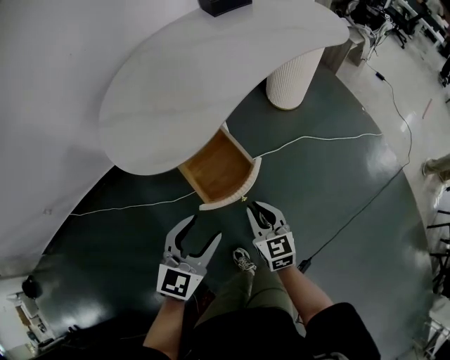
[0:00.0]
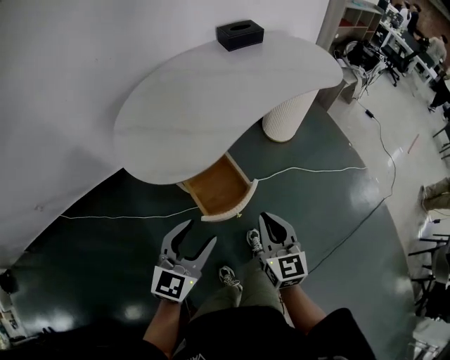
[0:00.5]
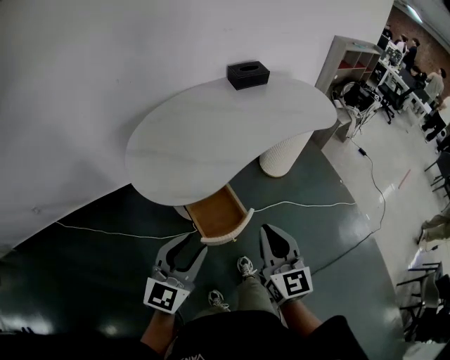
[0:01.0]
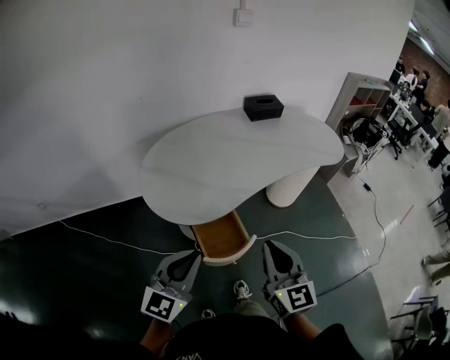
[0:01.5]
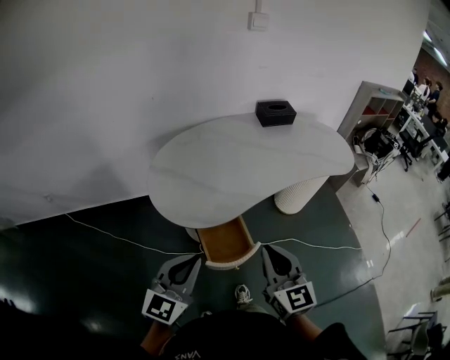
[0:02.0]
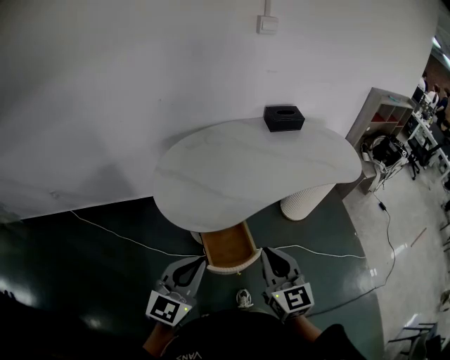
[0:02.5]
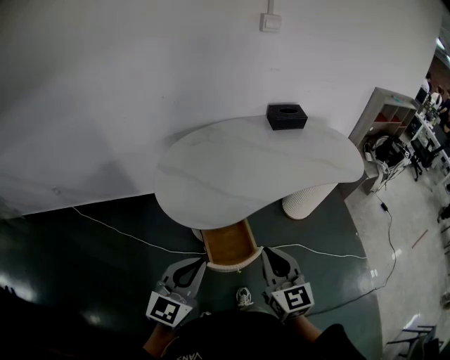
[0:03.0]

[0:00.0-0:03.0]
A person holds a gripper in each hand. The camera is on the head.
0:00.0 to 0:01.5: The right gripper travels upward by some 35 cm, and turns by some 20 degrees. Meanwhile the left gripper shifts about 20 cm upward, rotates approximately 20 degrees, and closes its fingers.
0:01.5 to 0:03.0: The right gripper changes place by roughly 5 cm.

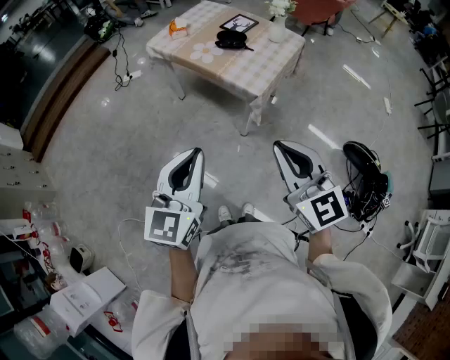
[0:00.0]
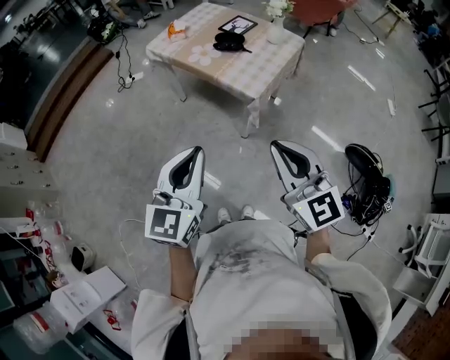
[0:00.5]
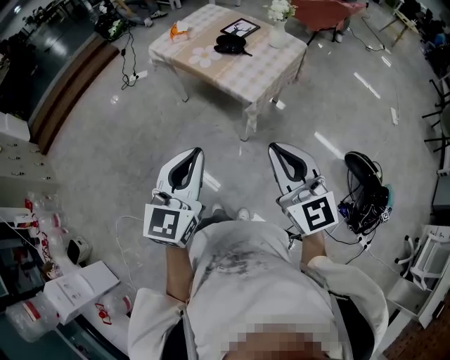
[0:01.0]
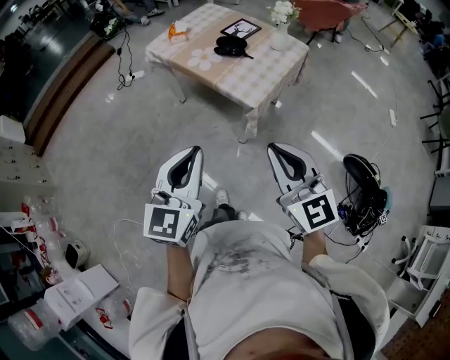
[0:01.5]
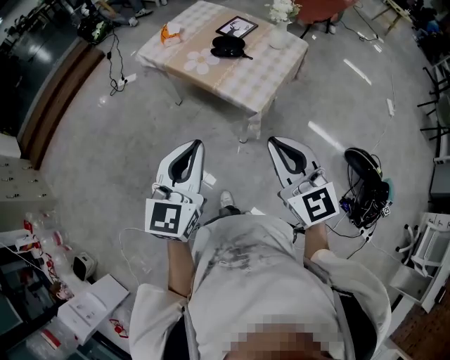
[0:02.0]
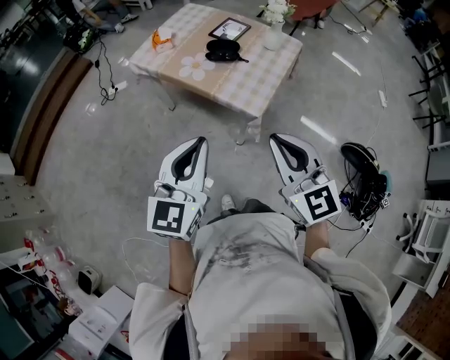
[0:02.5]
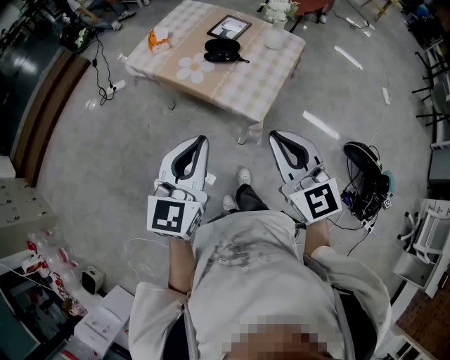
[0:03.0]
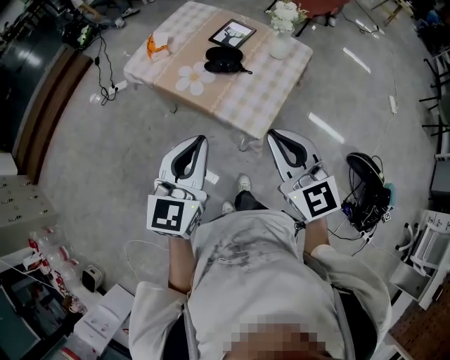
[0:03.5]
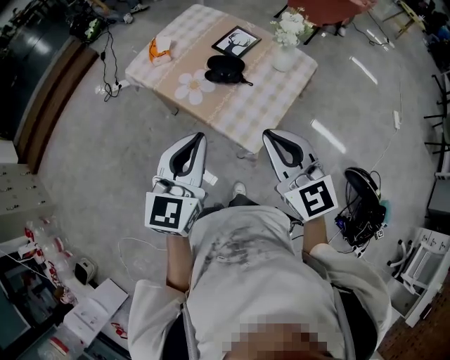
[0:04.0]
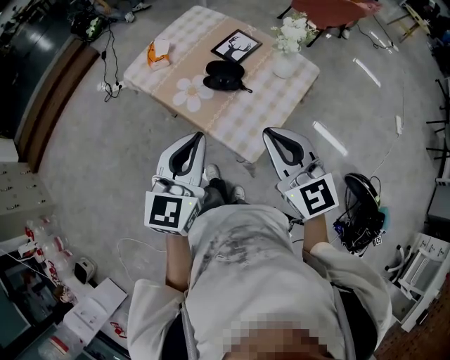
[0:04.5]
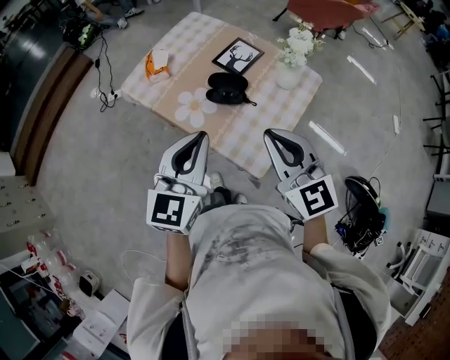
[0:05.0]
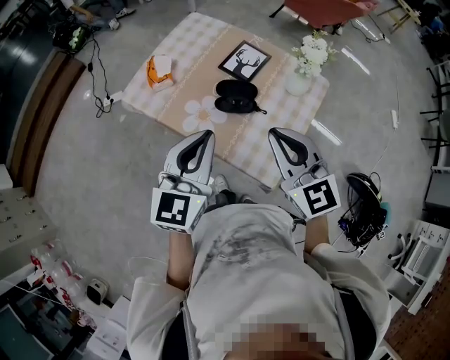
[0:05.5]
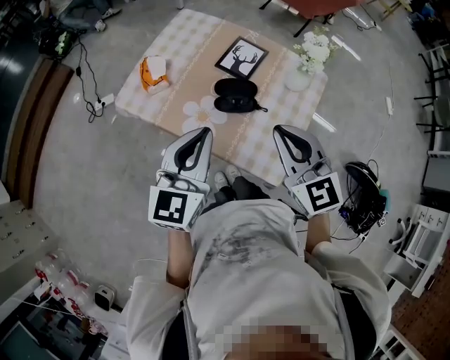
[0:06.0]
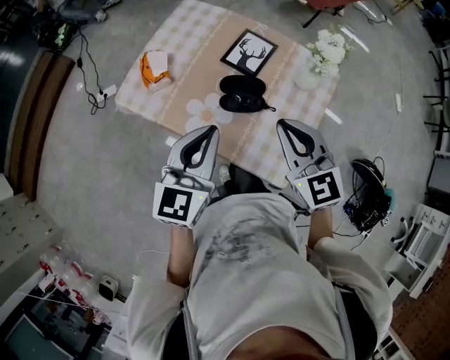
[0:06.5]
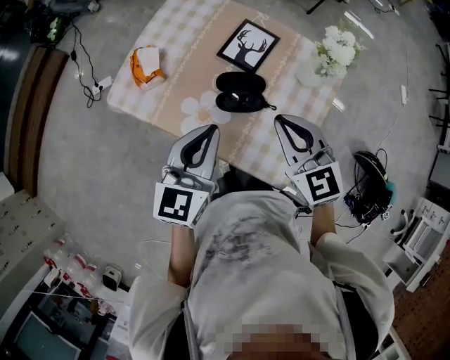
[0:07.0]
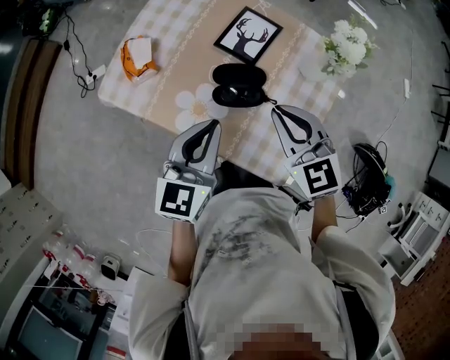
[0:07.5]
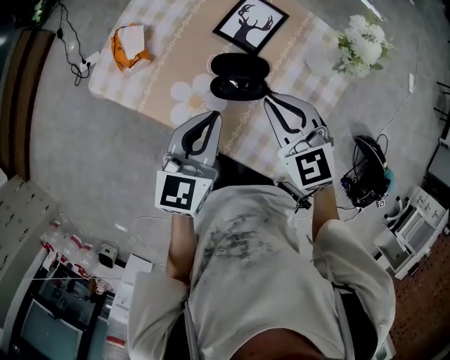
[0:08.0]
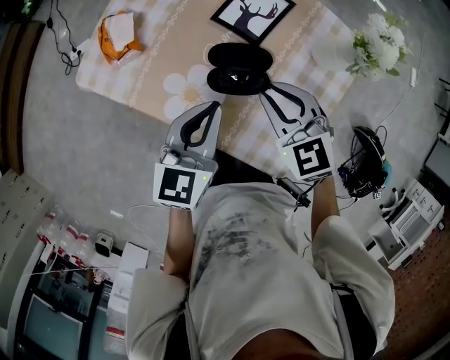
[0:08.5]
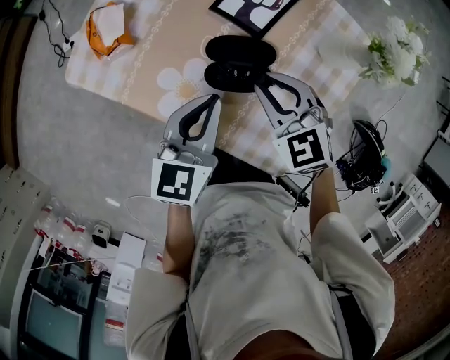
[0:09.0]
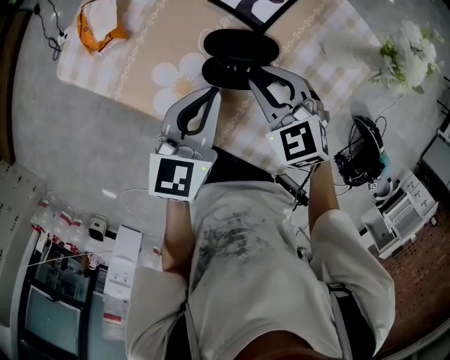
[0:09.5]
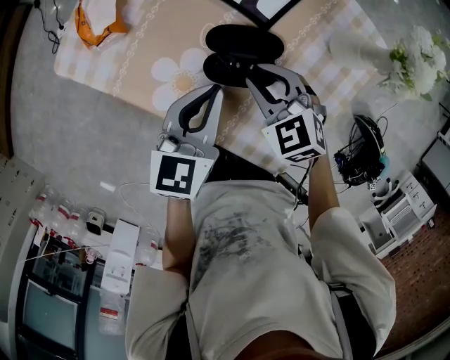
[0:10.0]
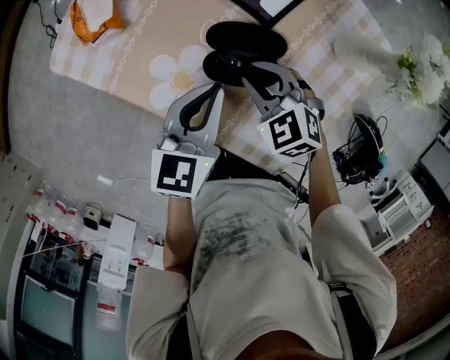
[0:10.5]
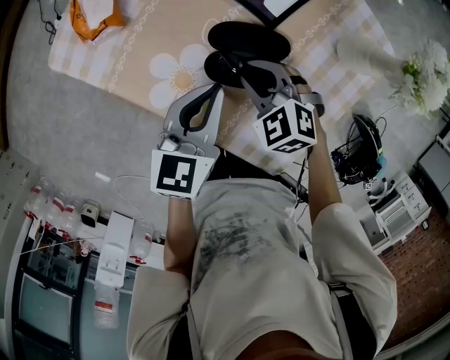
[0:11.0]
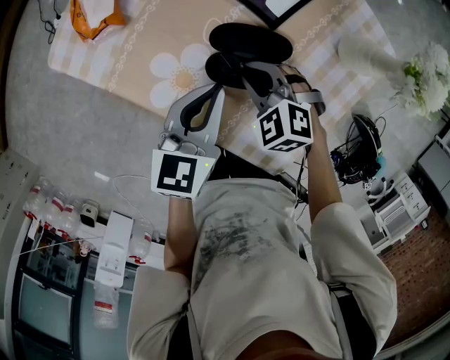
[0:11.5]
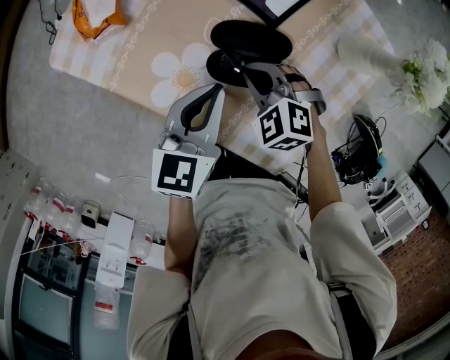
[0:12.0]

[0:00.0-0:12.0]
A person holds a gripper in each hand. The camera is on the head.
0:00.0 to 0:02.0: The grippers both shift forward by about 15 cm.
0:02.0 to 0:04.0: The grippers both shift forward by about 20 cm.
0:04.0 to 0:06.0: Both grippers travel together forward, approximately 20 cm.
0:06.0 to 0:08.0: Both grippers move downward and forward, approximately 20 cm.
0:08.0 to 0:10.0: Both grippers travel together downward, approximately 10 cm.
0:10.0 to 0:12.0: The right gripper is displaced downward by approximately 5 cm, and changes its angle by approximately 20 degrees.

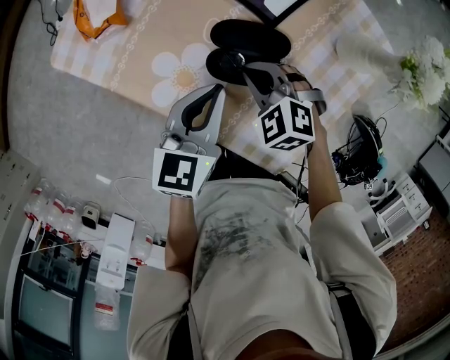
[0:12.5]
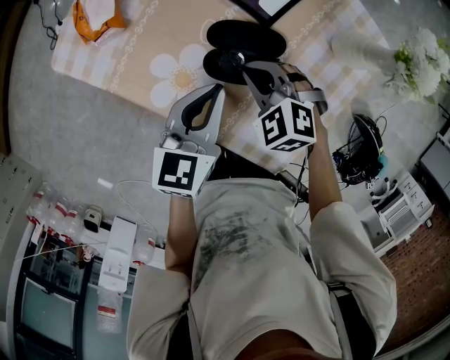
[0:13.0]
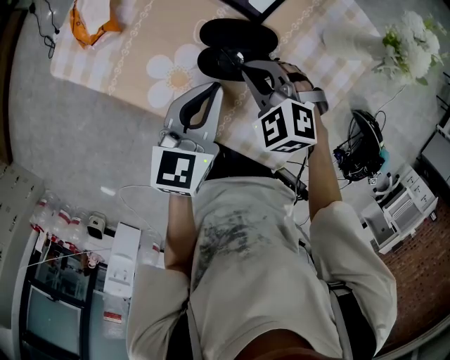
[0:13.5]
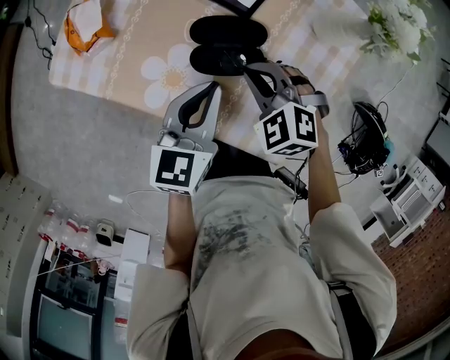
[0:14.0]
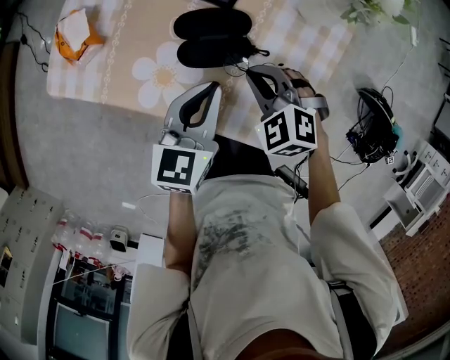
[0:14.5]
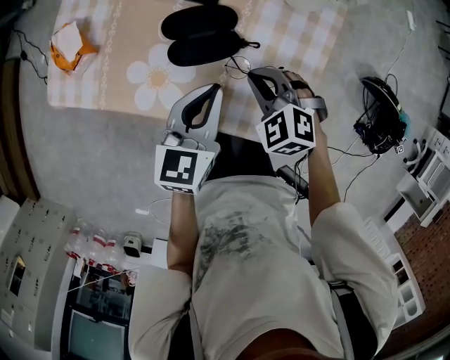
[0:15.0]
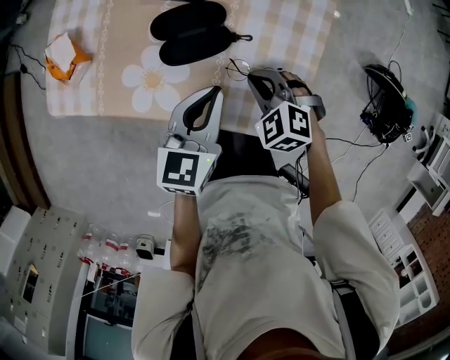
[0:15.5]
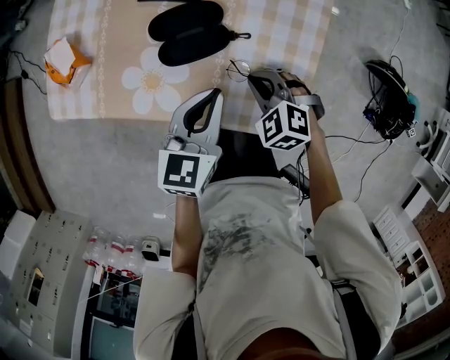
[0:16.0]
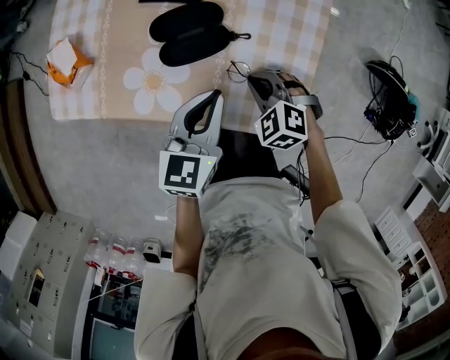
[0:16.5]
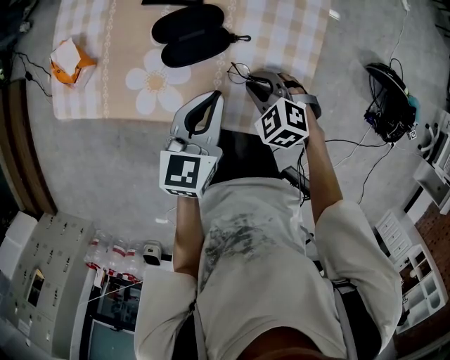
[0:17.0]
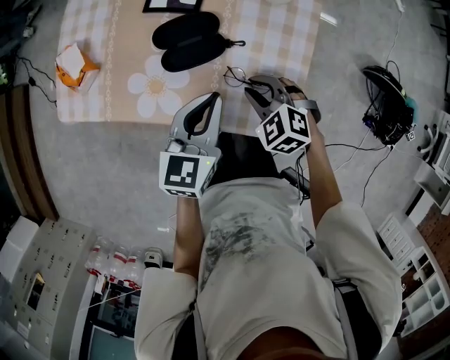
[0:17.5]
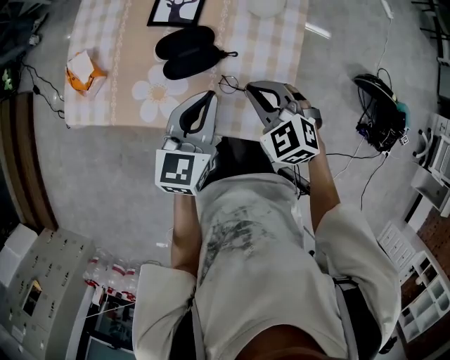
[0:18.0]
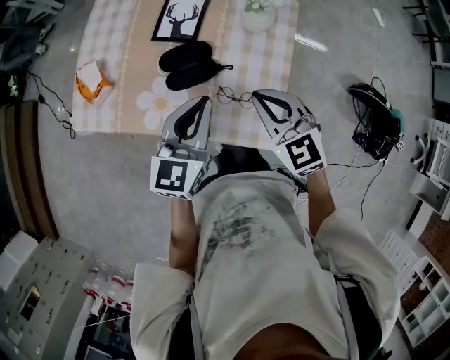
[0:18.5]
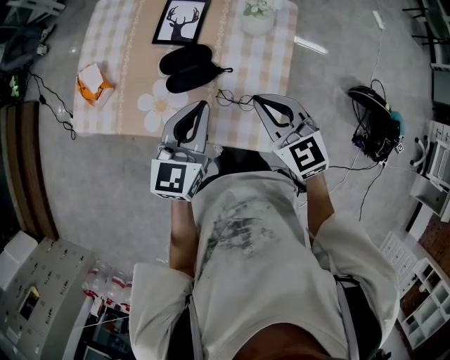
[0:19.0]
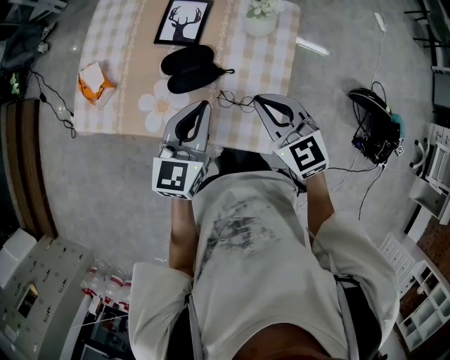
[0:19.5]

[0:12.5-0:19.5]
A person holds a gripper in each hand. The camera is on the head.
0:12.5 to 0:14.5: The right gripper shifts approximately 10 cm to the right and backward; the left gripper changes place by some 5 cm.
0:14.5 to 0:16.0: The right gripper travels backward and downward by about 10 cm, while the left gripper ends up approximately 5 cm from where it was.
0:16.0 to 0:17.5: There are only small adjustments of the grippers.
0:17.5 to 0:19.5: The right gripper shifts about 20 cm upward, and rotates some 40 degrees. The left gripper moves upward, approximately 10 cm.

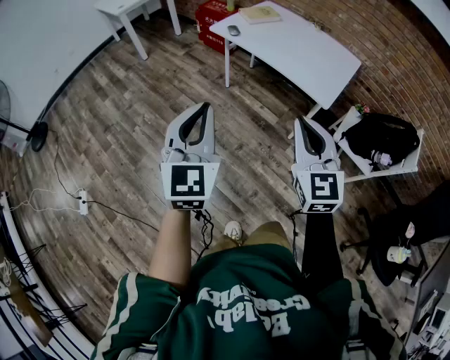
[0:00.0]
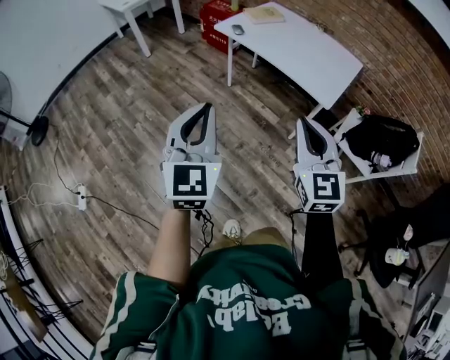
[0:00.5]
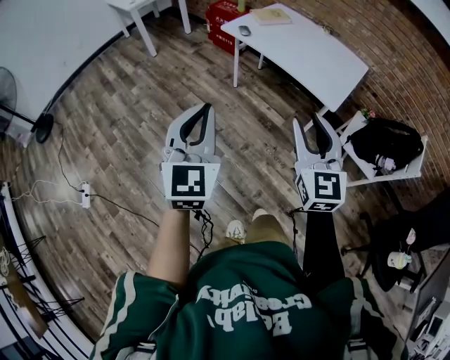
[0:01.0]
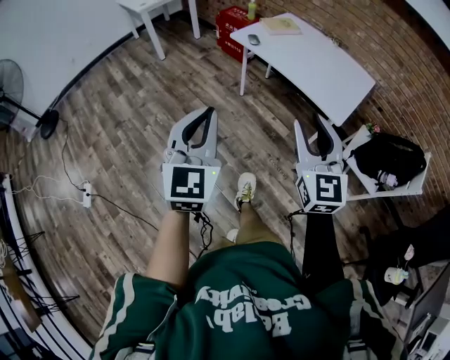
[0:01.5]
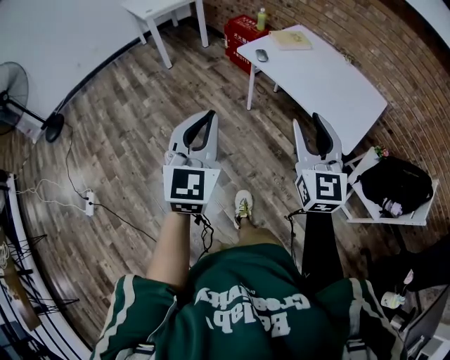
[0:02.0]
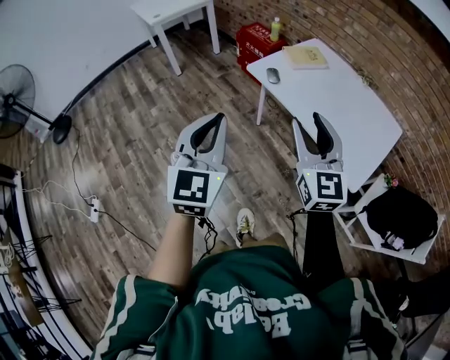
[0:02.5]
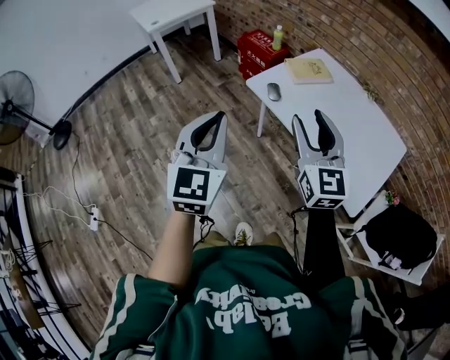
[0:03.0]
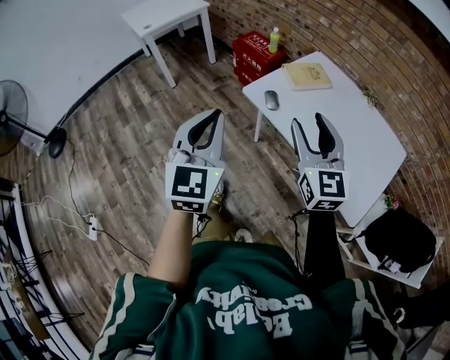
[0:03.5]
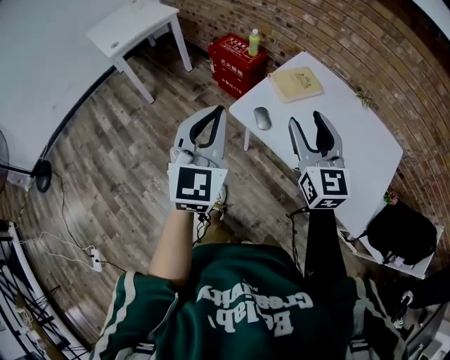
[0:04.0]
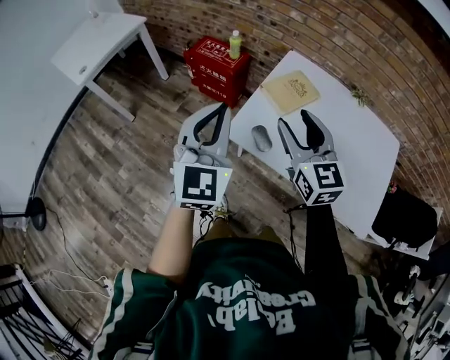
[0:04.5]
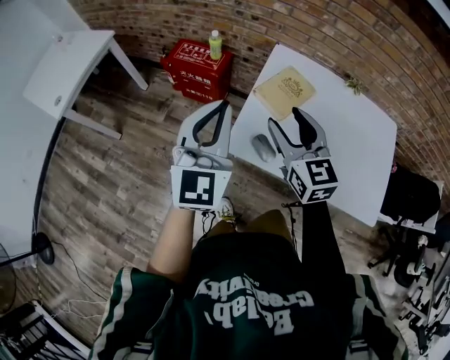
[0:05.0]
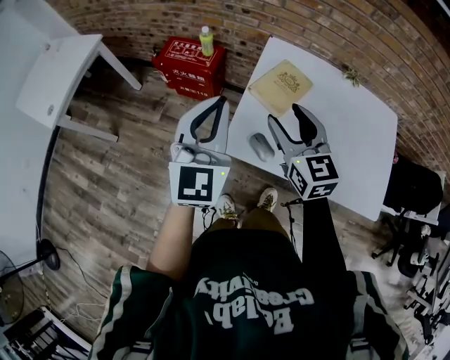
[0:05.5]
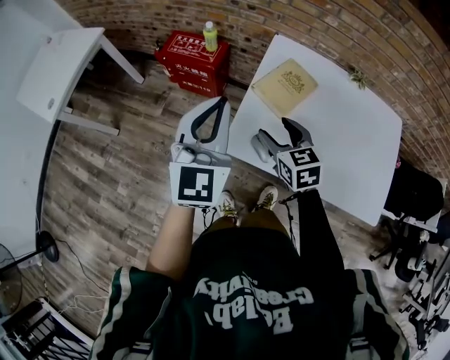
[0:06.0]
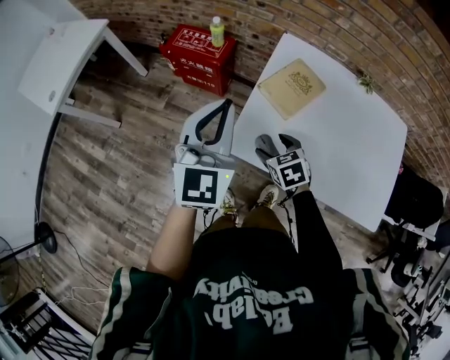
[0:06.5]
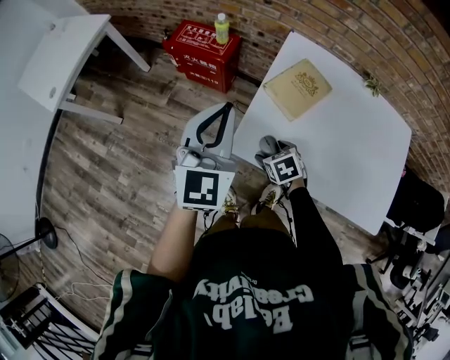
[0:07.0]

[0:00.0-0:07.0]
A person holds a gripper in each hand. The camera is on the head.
0:00.0 to 0:02.0: Both grippers travel together forward, some 15 cm. The right gripper opens up.
0:02.0 to 0:03.5: The two grippers go approximately 30 cm forward.
0:03.5 to 0:05.0: Both grippers travel together forward, some 35 cm. The right gripper changes its angle by some 20 degrees. The left gripper turns by about 30 degrees.
0:05.0 to 0:07.0: The right gripper travels downward by about 30 cm, and tips its fingers downward by about 50 degrees. Meanwhile the left gripper moves downward and forward, roughly 10 cm.
